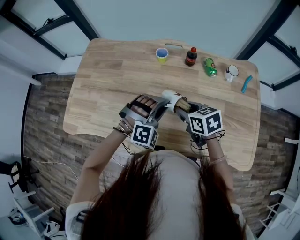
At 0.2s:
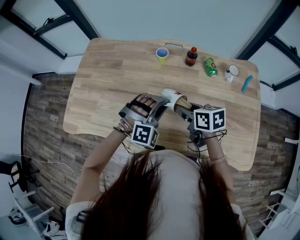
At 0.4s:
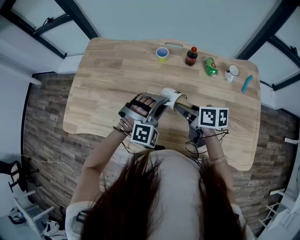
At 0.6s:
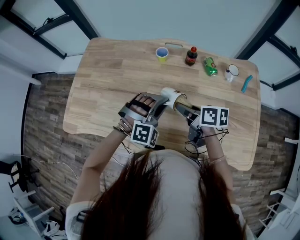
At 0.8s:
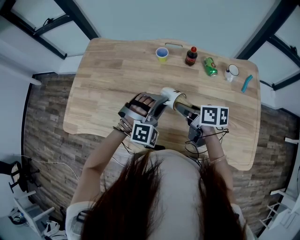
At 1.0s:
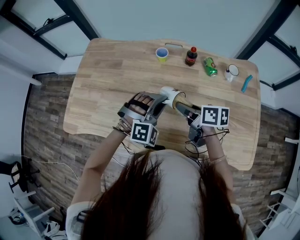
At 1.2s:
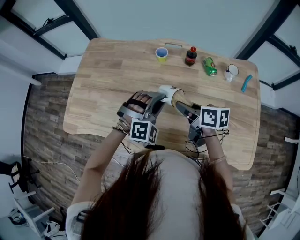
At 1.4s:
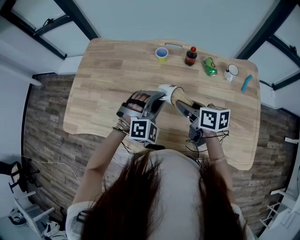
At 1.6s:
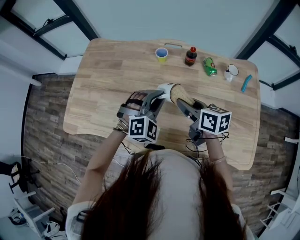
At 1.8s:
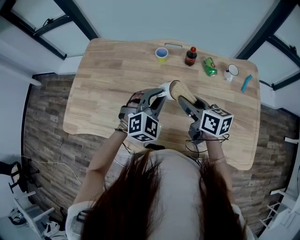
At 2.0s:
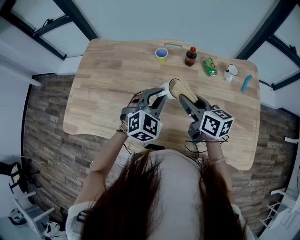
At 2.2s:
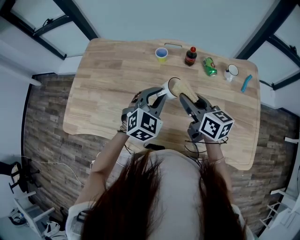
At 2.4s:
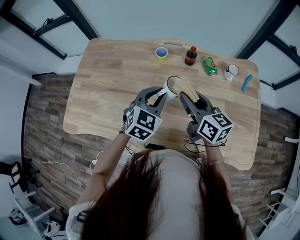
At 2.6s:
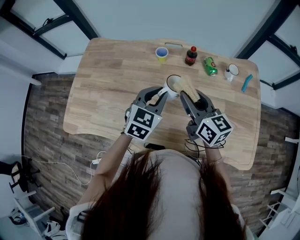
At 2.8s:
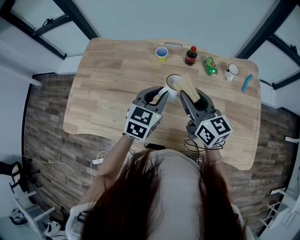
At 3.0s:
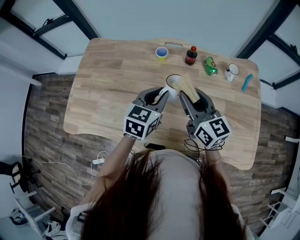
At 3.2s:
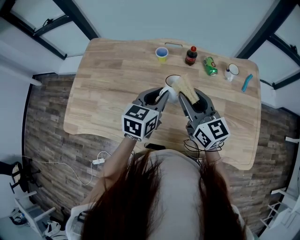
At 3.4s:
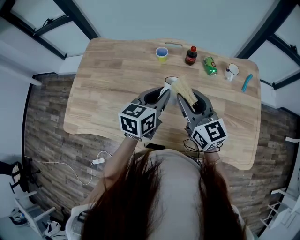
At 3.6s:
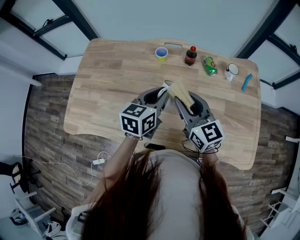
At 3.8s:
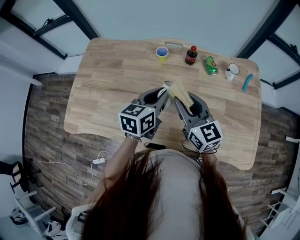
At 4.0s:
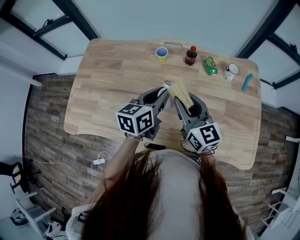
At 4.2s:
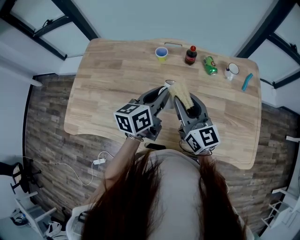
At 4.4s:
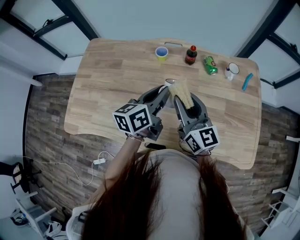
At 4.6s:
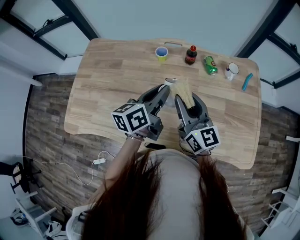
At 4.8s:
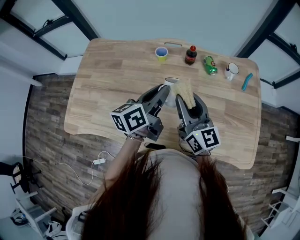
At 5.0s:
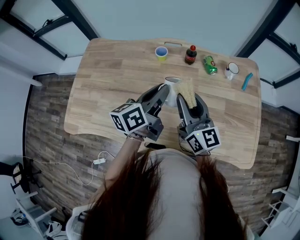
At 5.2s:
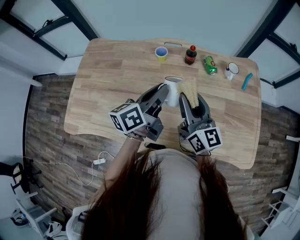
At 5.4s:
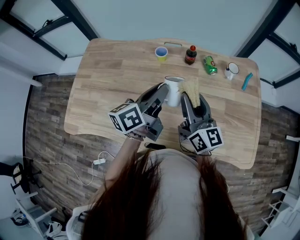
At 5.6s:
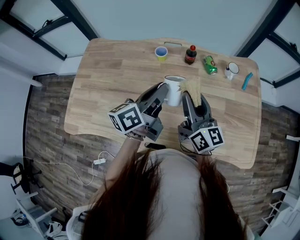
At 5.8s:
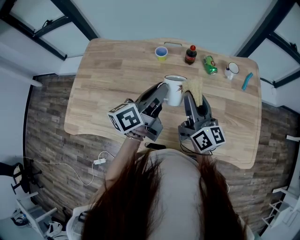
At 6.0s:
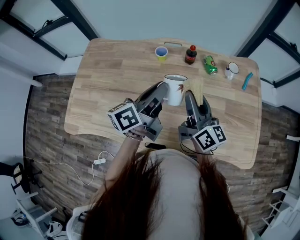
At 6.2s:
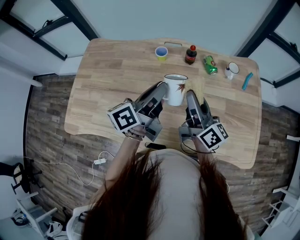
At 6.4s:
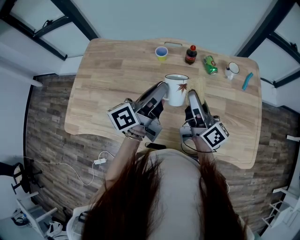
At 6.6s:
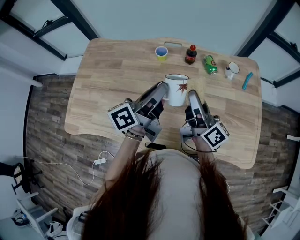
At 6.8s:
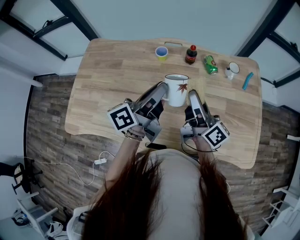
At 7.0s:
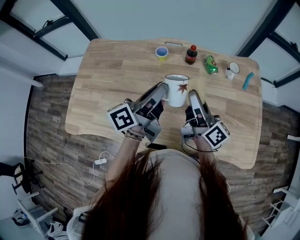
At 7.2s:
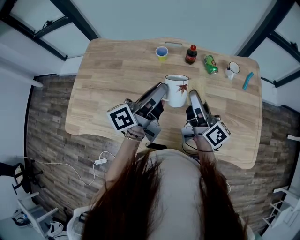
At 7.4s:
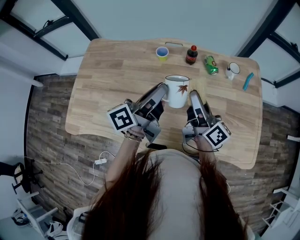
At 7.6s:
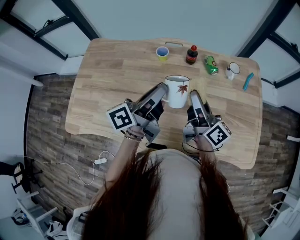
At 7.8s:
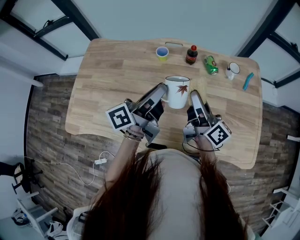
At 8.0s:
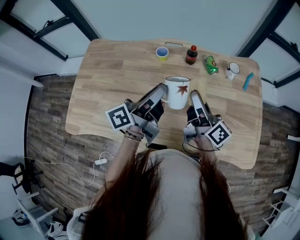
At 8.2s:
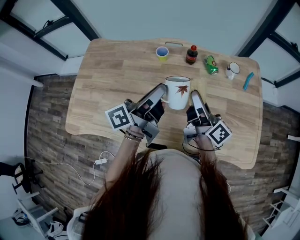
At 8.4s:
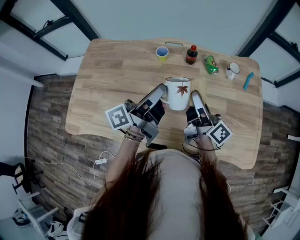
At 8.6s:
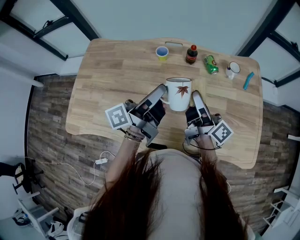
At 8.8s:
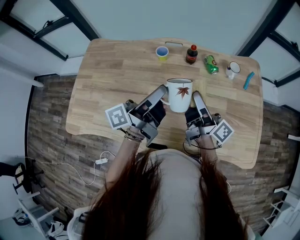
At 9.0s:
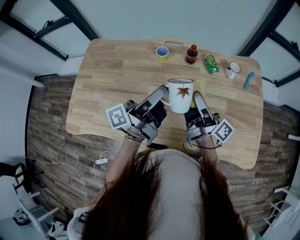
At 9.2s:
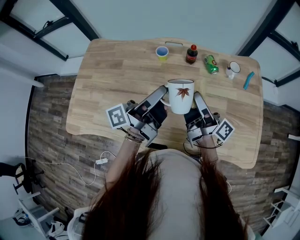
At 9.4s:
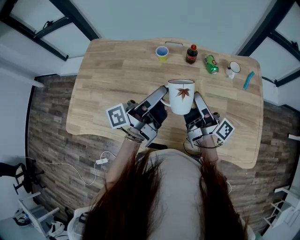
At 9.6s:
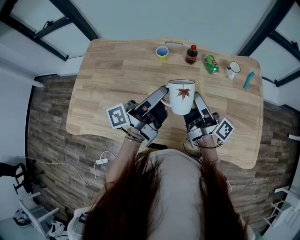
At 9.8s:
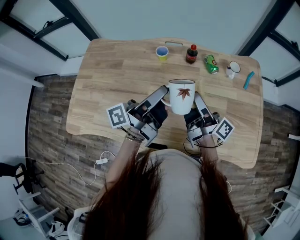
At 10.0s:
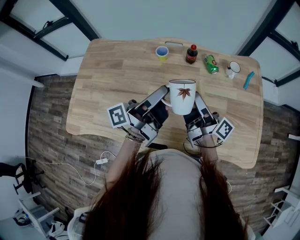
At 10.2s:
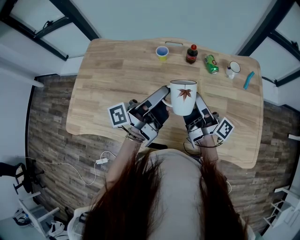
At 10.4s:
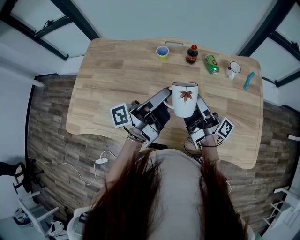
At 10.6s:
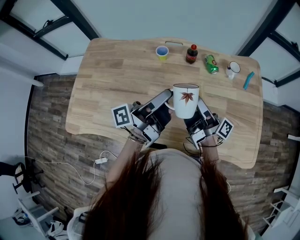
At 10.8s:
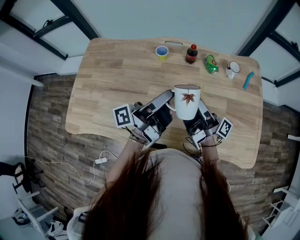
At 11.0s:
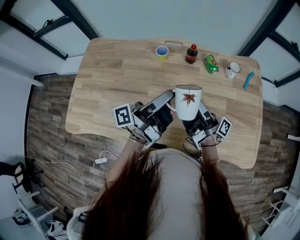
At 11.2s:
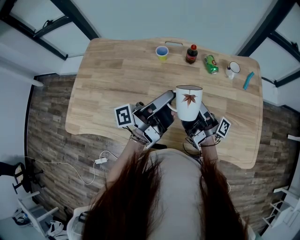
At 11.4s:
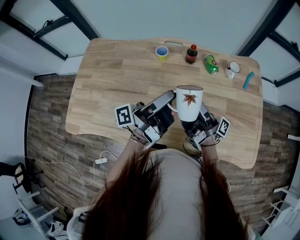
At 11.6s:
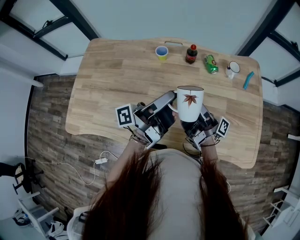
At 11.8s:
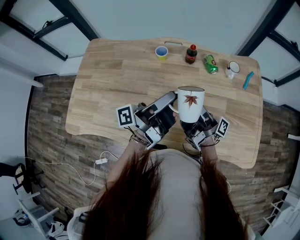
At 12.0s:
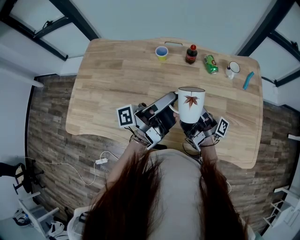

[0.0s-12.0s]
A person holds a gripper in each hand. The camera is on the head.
0.0s to 1.6s: The right gripper turns by roughly 20 degrees.
1.6s to 3.0s: The right gripper moves upward, roughly 10 cm, and swivels some 30 degrees; the left gripper rotates around the line of its fingers by about 60 degrees, counterclockwise from behind.
3.0s to 4.4s: The left gripper turns by about 40 degrees.
4.4s to 6.0s: The right gripper changes its angle by some 20 degrees.
7.6s to 9.0s: The right gripper changes its angle by some 20 degrees.
9.0s to 10.4s: There are only small adjustments of the grippers.
10.4s to 12.0s: The grippers make only small movements.

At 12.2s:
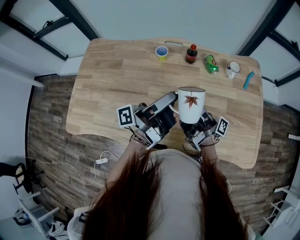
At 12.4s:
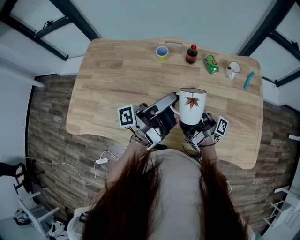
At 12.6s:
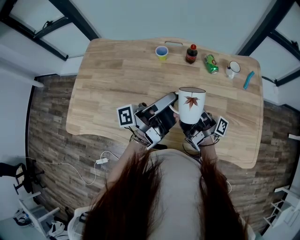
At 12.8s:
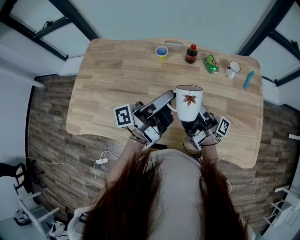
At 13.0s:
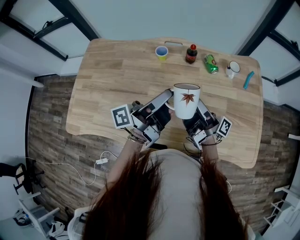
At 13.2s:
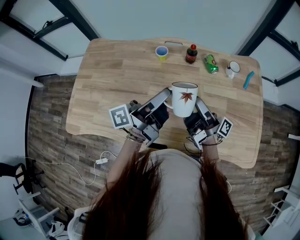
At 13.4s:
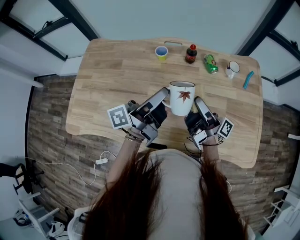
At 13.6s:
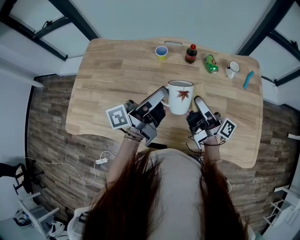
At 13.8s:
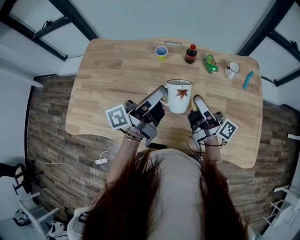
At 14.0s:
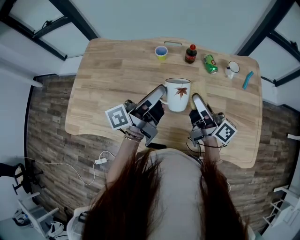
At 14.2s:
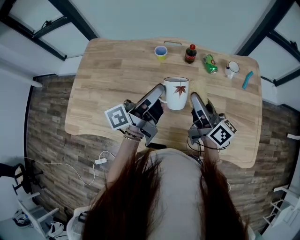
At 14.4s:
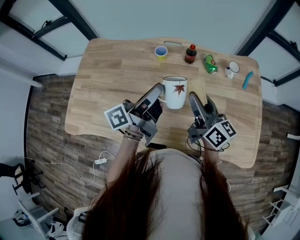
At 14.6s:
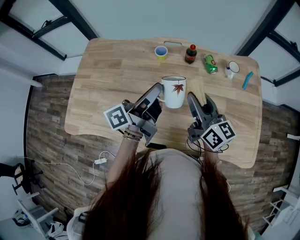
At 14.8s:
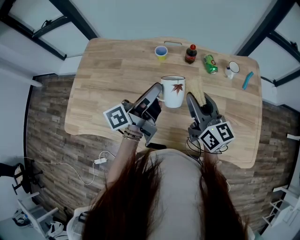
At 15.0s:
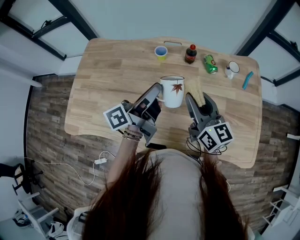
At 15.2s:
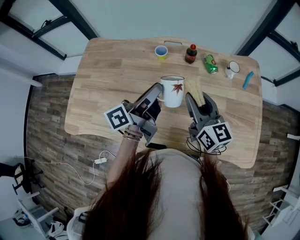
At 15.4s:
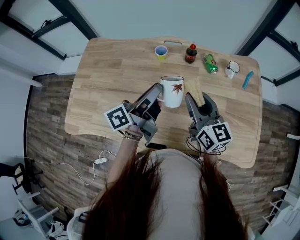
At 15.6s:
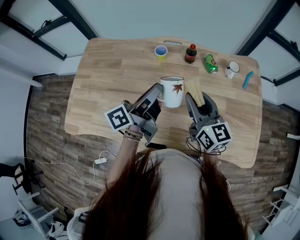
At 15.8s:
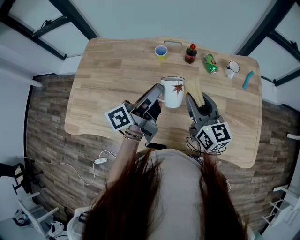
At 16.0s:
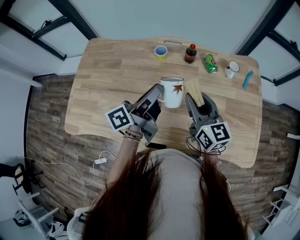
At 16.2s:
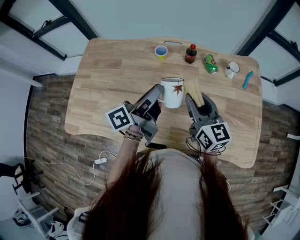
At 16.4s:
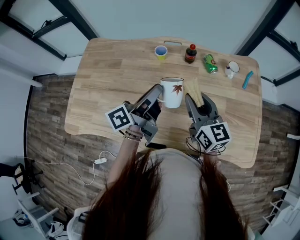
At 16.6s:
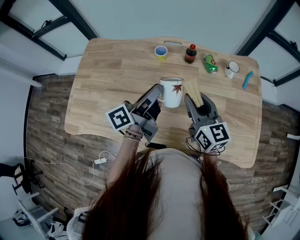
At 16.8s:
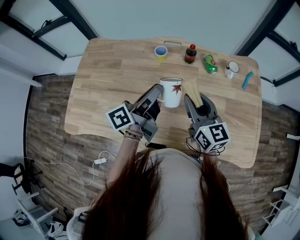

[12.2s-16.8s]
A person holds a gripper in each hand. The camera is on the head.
12.2s to 13.8s: The left gripper turns by some 20 degrees. The right gripper turns by approximately 30 degrees.
13.8s to 15.2s: The right gripper rolls counterclockwise, seen from behind, by some 50 degrees.
15.2s to 16.8s: The grippers make only small movements.

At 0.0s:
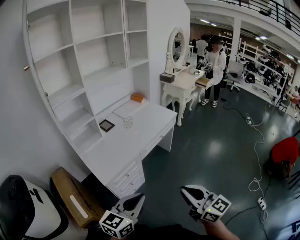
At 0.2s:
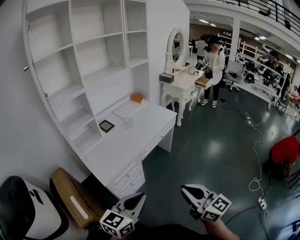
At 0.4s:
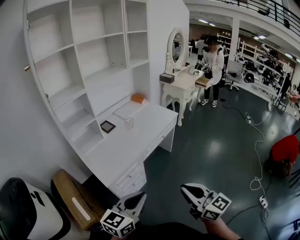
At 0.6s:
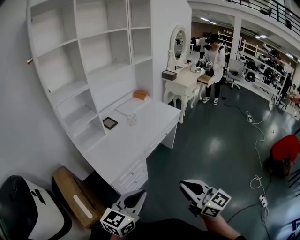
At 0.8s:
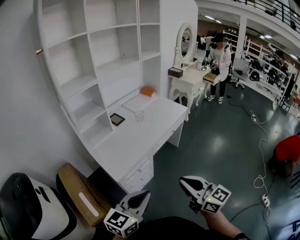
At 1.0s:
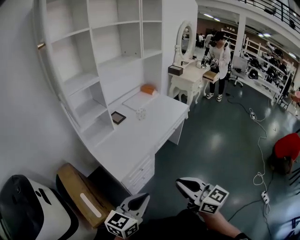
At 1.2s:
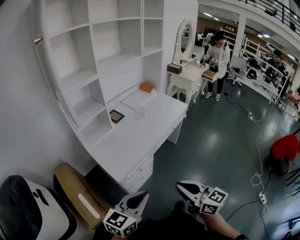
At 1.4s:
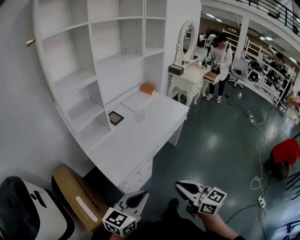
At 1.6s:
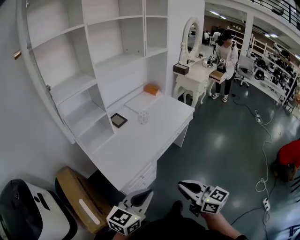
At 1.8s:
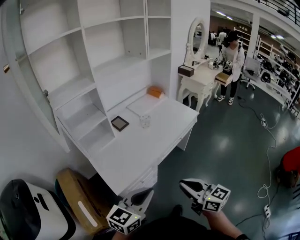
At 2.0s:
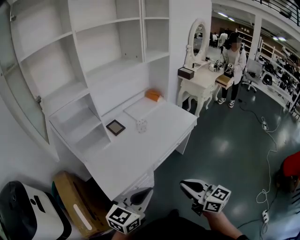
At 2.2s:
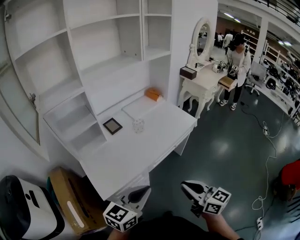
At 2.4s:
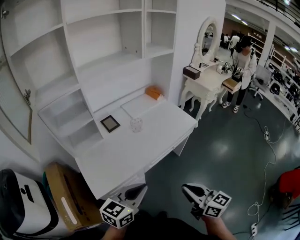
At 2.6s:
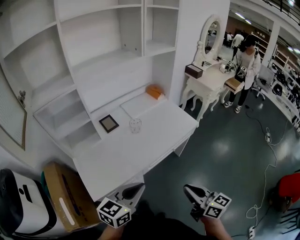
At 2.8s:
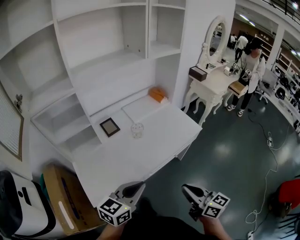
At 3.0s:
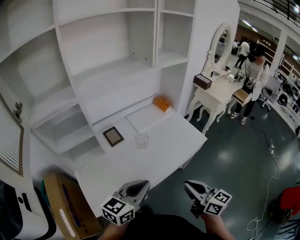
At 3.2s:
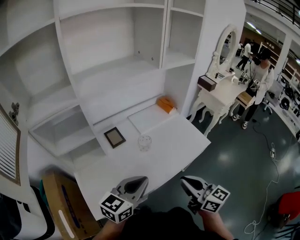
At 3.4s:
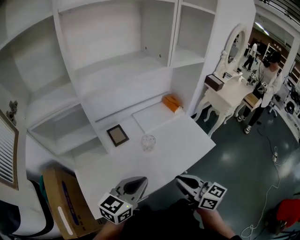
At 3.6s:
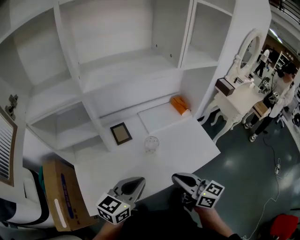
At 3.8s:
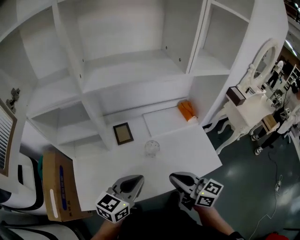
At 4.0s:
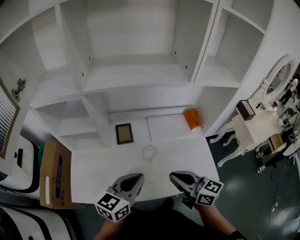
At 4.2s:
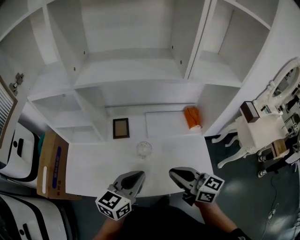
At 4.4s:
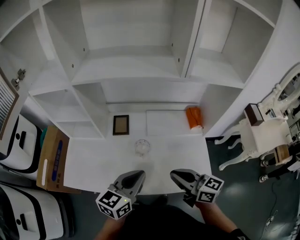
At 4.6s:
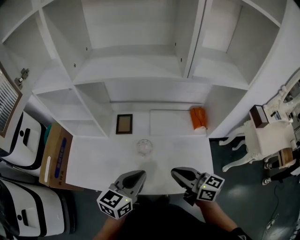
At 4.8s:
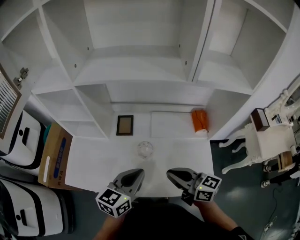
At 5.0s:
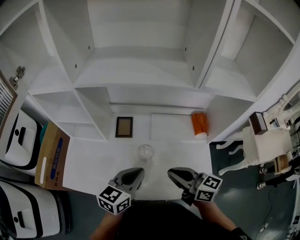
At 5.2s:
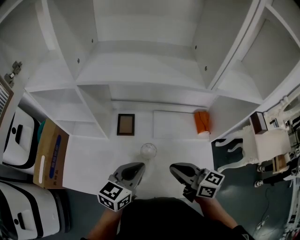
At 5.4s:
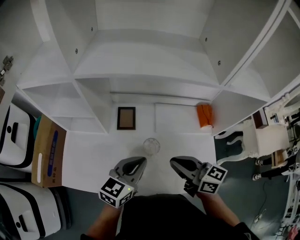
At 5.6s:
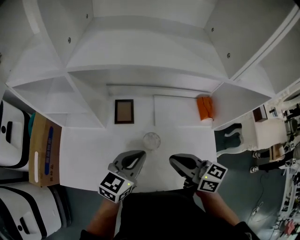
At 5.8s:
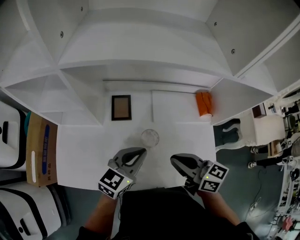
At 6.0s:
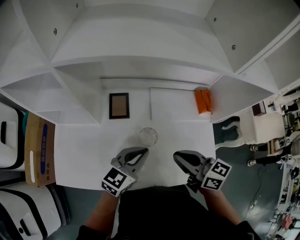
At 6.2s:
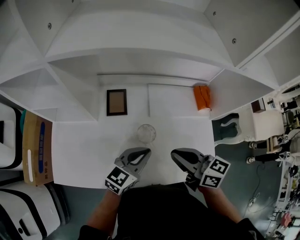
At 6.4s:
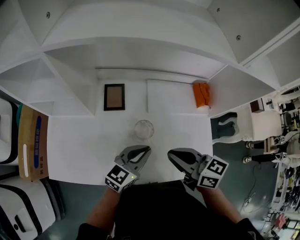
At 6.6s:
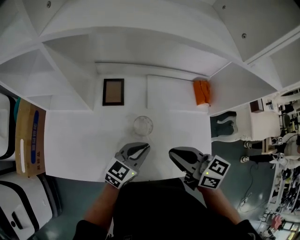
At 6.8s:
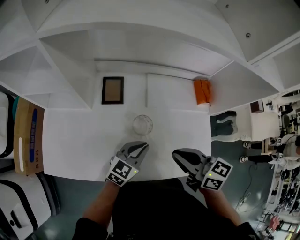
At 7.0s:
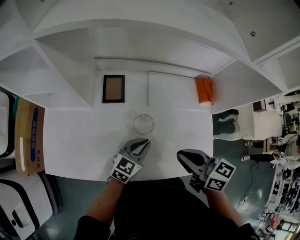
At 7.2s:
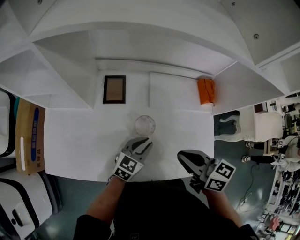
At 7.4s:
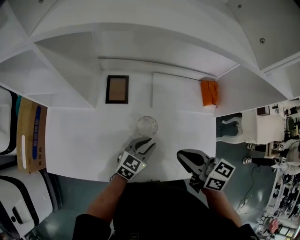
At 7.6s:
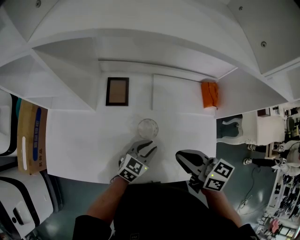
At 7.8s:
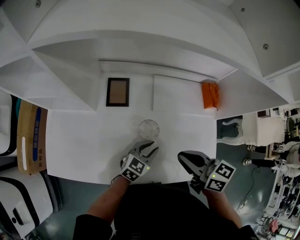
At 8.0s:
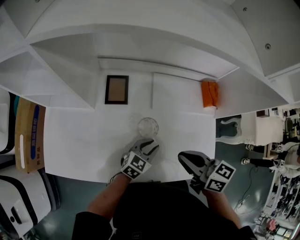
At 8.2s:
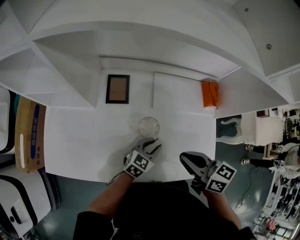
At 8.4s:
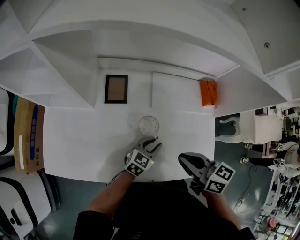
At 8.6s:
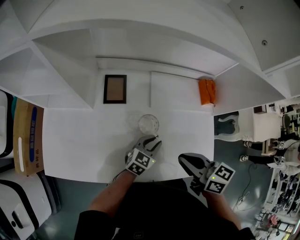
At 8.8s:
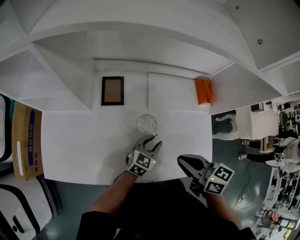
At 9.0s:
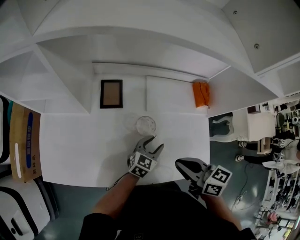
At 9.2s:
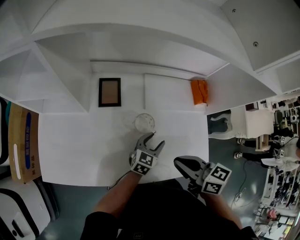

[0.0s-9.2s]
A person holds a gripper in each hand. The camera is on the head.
0.0s to 1.6s: The right gripper travels to the left, forward and downward by roughly 20 cm. Meanwhile the left gripper is displaced forward and to the left by some 15 cm.
1.6s to 3.0s: The right gripper is displaced forward and to the right by approximately 35 cm; the left gripper goes some 30 cm forward.
3.0s to 4.6s: The left gripper changes place by some 25 cm, and rotates approximately 40 degrees. Meanwhile the right gripper changes place by approximately 30 cm, and rotates approximately 50 degrees.
4.6s to 6.2s: The left gripper goes about 15 cm downward and forward. Meanwhile the right gripper goes roughly 10 cm forward and to the left.
6.2s to 7.6s: The left gripper heads downward, covering some 10 cm.
7.6s to 9.2s: The left gripper moves approximately 5 cm, and opens.
